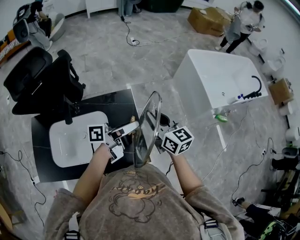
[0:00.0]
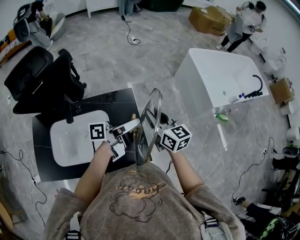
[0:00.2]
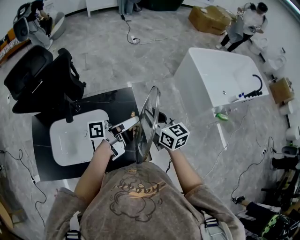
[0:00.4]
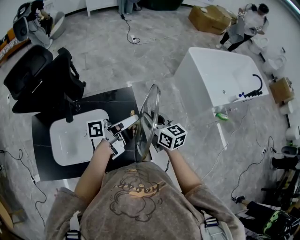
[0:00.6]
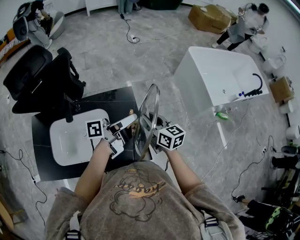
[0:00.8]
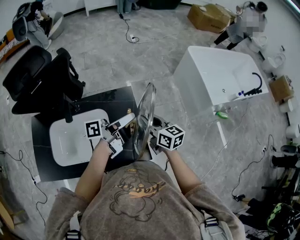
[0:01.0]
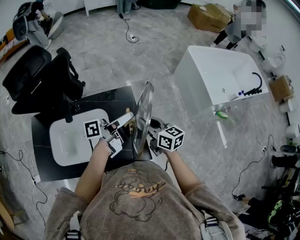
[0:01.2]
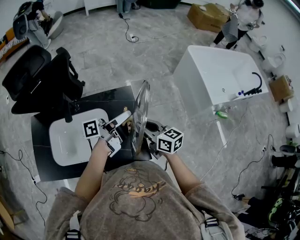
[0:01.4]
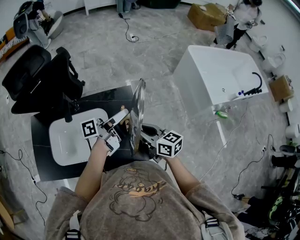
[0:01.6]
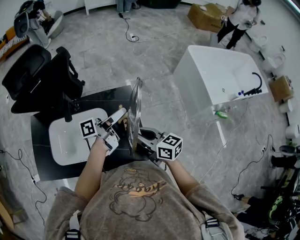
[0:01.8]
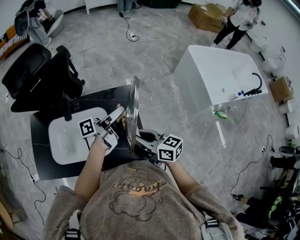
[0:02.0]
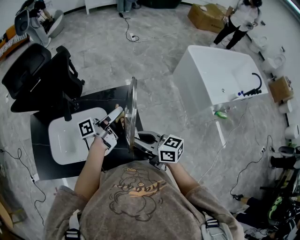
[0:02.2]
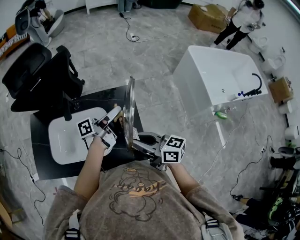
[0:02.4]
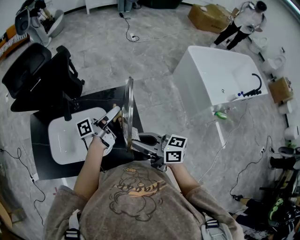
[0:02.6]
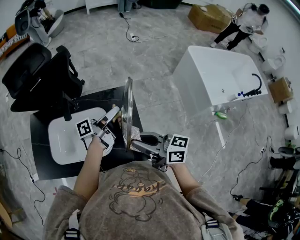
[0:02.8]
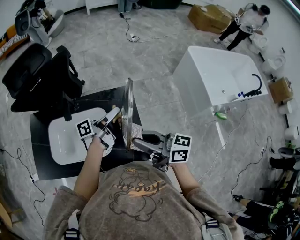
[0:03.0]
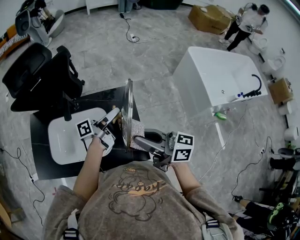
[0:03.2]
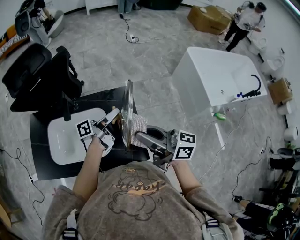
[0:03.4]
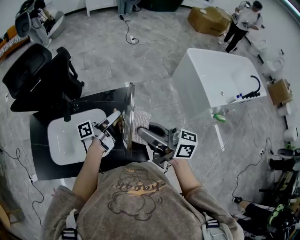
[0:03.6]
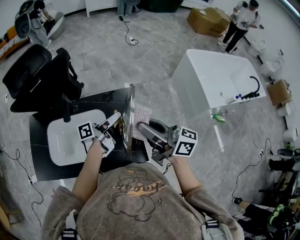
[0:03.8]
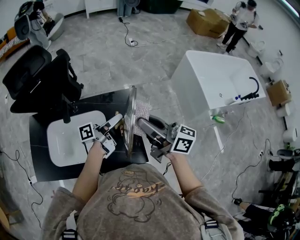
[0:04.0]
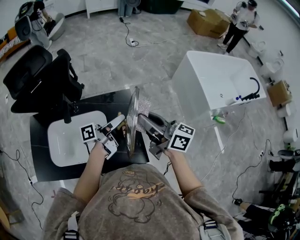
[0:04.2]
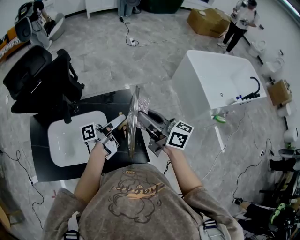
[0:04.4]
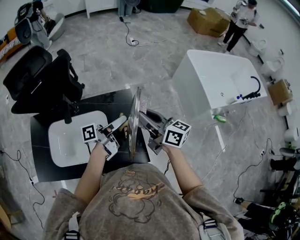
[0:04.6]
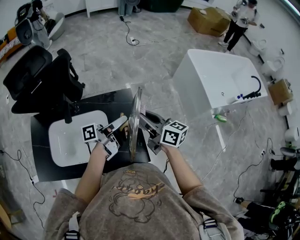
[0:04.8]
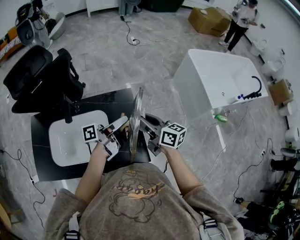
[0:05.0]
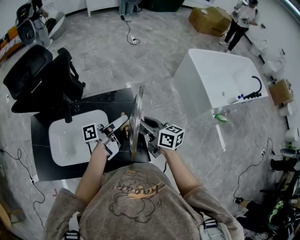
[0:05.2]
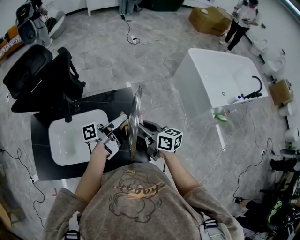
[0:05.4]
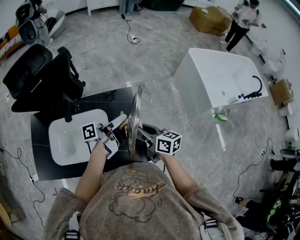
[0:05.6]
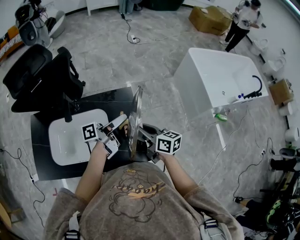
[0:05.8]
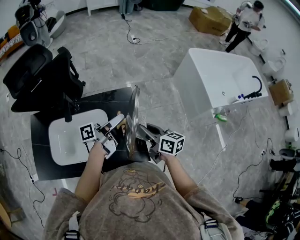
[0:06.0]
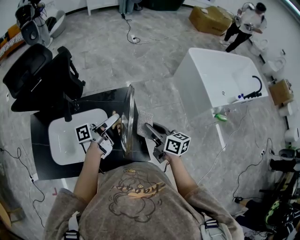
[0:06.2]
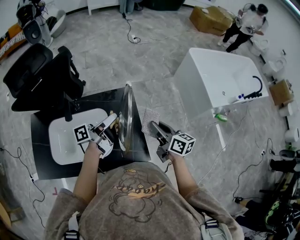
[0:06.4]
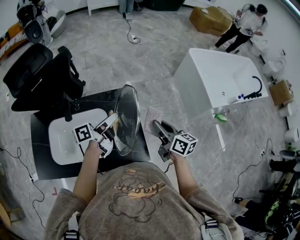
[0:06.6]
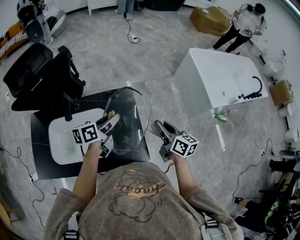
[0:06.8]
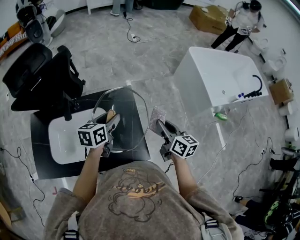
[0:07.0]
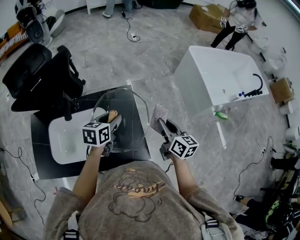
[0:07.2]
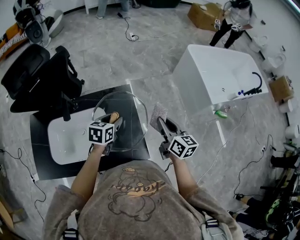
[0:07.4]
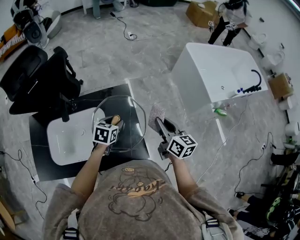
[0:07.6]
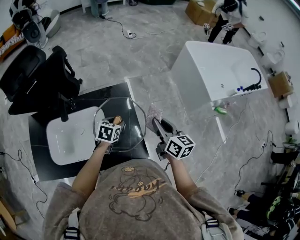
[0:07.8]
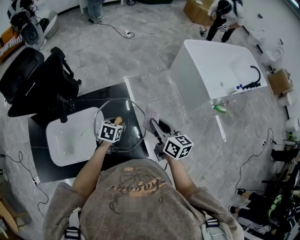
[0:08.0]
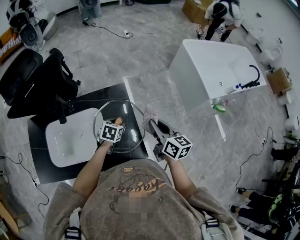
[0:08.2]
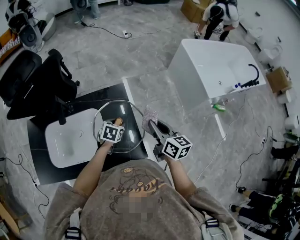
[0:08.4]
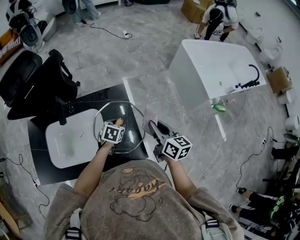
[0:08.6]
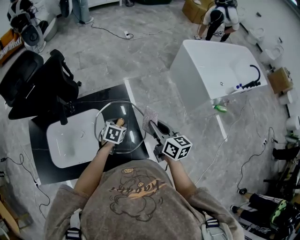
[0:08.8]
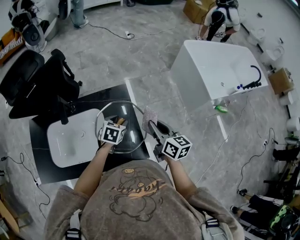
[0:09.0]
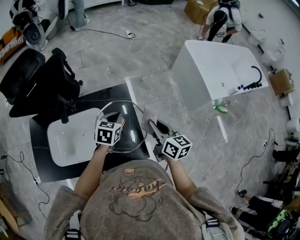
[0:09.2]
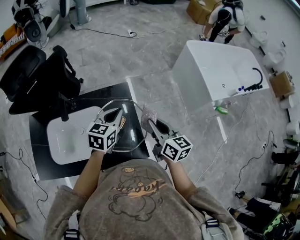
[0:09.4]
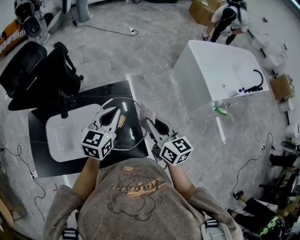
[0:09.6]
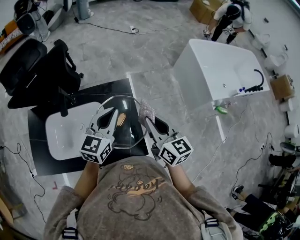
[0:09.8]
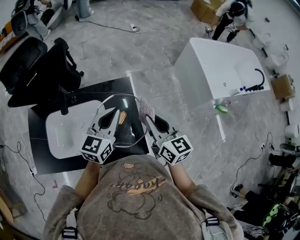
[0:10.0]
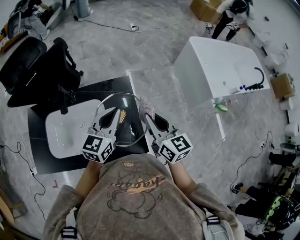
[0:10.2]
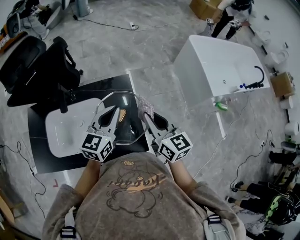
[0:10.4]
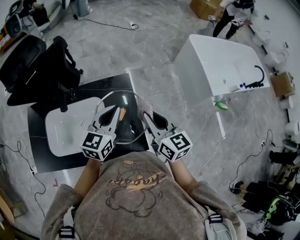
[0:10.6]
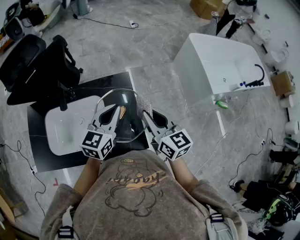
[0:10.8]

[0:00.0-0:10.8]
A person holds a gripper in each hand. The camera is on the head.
0:00.0 to 0:01.6: The left gripper moves roughly 5 cm, while the right gripper shifts roughly 10 cm downward and backward, and swivels about 20 degrees.
0:01.6 to 0:03.0: The right gripper shifts approximately 10 cm upward and backward, and changes its angle by roughly 20 degrees.
0:03.0 to 0:04.6: The right gripper travels forward by roughly 10 cm.
0:04.6 to 0:06.2: The right gripper shifts some 10 cm downward.
0:06.2 to 0:07.8: The right gripper travels to the right by some 5 cm. Meanwhile the left gripper heads downward, covering approximately 15 cm, and points its fingers some 60 degrees further downward.
0:07.8 to 0:09.2: The left gripper heads upward, covering about 5 cm, and closes.
0:09.2 to 0:10.8: The right gripper is displaced upward by some 5 cm, while the left gripper goes roughly 10 cm upward, and changes its angle by roughly 30 degrees.

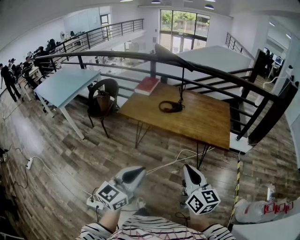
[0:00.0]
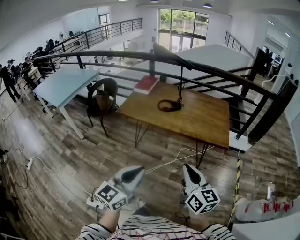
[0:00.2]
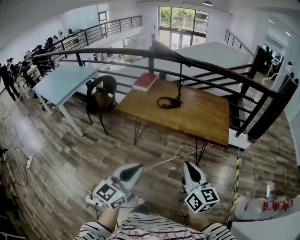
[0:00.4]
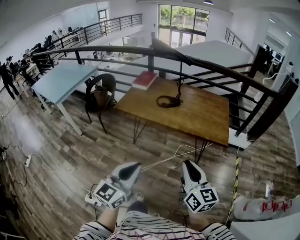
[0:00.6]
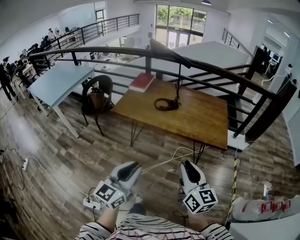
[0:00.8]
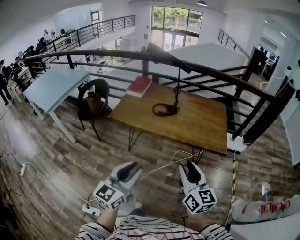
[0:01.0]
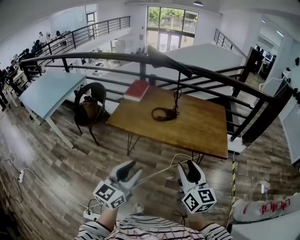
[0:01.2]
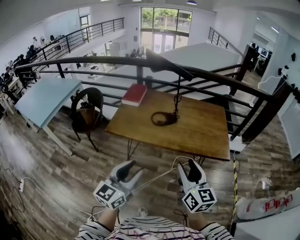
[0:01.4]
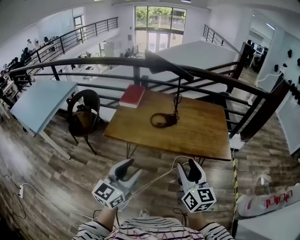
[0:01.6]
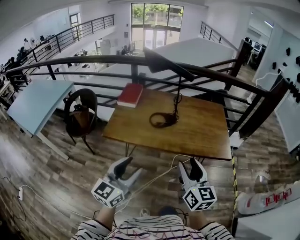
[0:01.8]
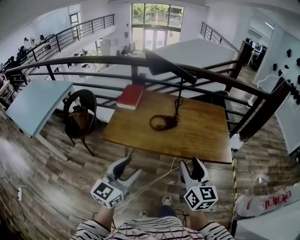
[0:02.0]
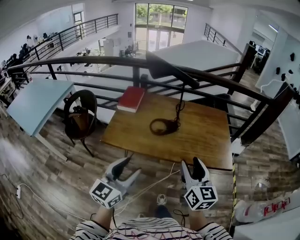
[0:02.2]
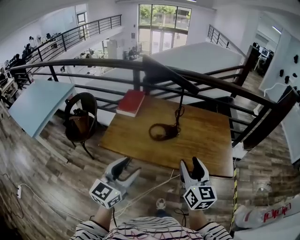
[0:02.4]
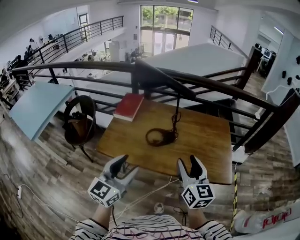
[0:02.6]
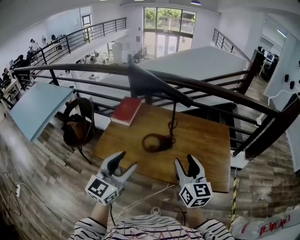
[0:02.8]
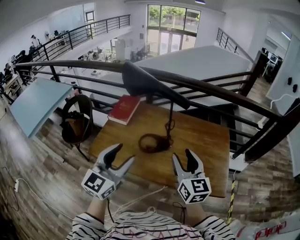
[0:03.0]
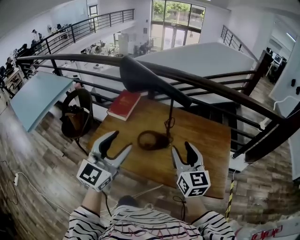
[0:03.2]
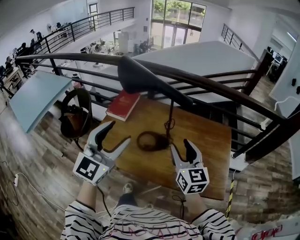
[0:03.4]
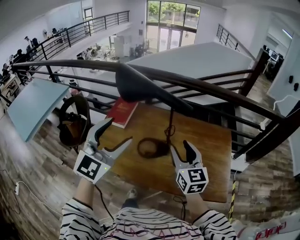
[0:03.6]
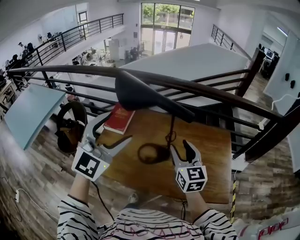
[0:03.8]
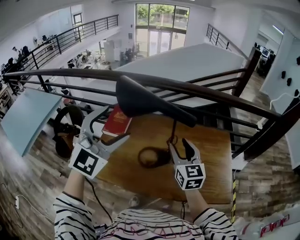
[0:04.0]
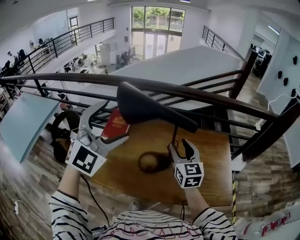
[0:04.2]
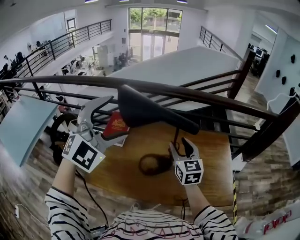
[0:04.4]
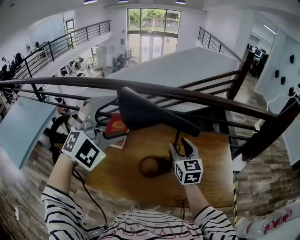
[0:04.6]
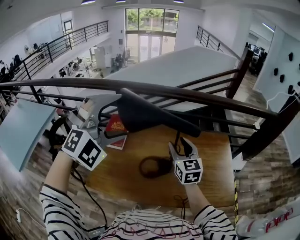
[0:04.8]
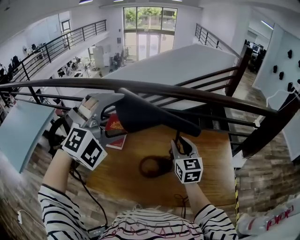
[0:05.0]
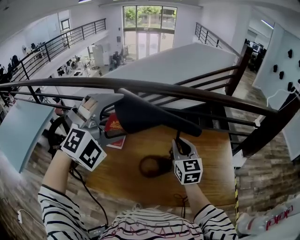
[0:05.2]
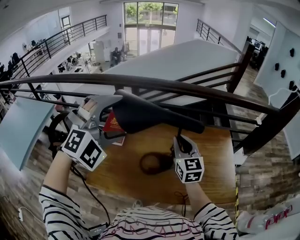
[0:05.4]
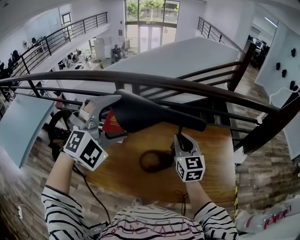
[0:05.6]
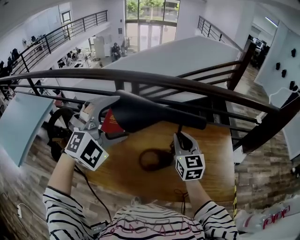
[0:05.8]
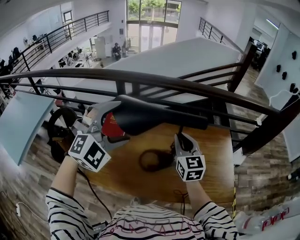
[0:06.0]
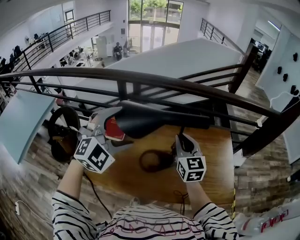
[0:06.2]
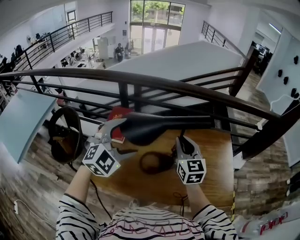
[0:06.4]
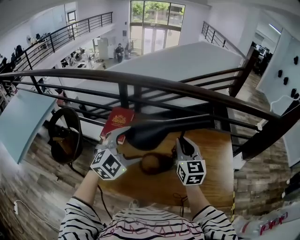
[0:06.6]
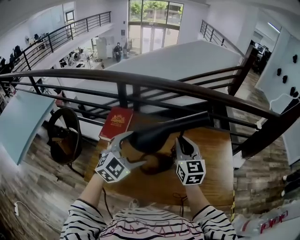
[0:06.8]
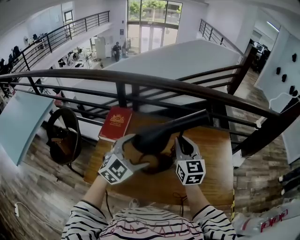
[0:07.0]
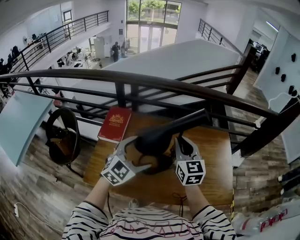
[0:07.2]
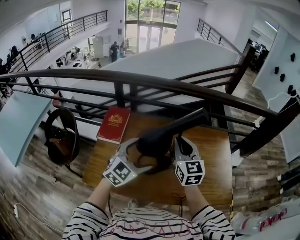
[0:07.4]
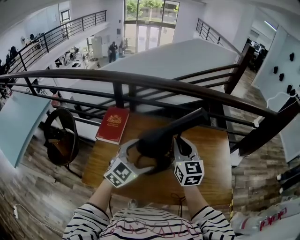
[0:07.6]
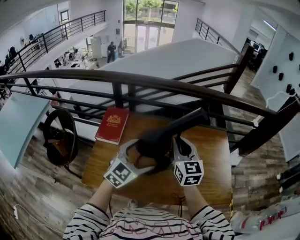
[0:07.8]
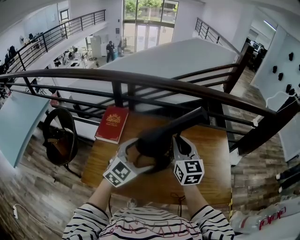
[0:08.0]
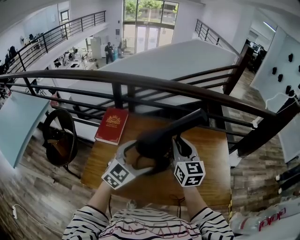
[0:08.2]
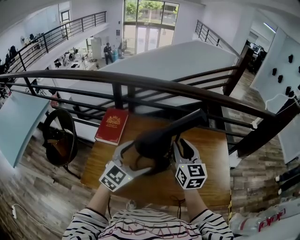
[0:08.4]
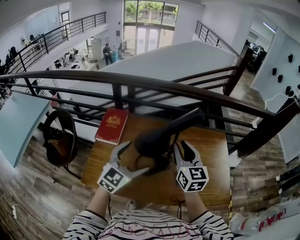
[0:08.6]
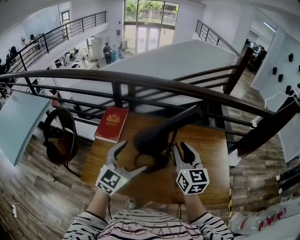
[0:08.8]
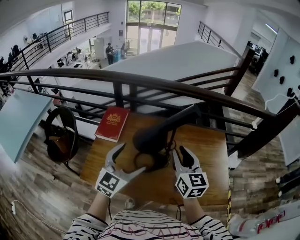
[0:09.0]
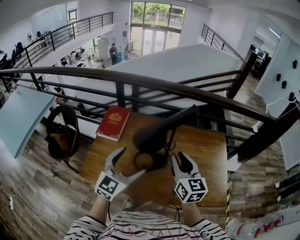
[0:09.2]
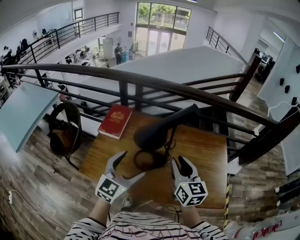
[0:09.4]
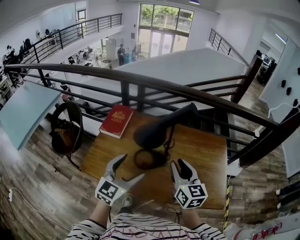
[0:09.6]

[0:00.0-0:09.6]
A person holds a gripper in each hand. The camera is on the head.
0:00.0 to 0:01.6: The two grippers go some 30 cm forward and to the left. The right gripper opens its fingers. The left gripper opens up.
0:01.6 to 0:03.2: The two grippers go approximately 35 cm forward. The left gripper changes its angle by approximately 20 degrees.
0:03.2 to 0:04.8: The right gripper shifts approximately 20 cm forward and to the left. The left gripper is displaced forward, upward and to the left by roughly 25 cm, rolls clockwise, seen from behind, by roughly 60 degrees, and opens.
0:04.8 to 0:06.4: The left gripper goes roughly 15 cm downward, and turns by some 30 degrees, while the right gripper closes up.
0:06.4 to 0:08.0: The left gripper goes some 10 cm downward and to the right, and turns by roughly 30 degrees.
0:08.0 to 0:09.6: The left gripper is displaced backward by some 10 cm, and swivels approximately 20 degrees, while the right gripper shifts some 15 cm backward and to the right.

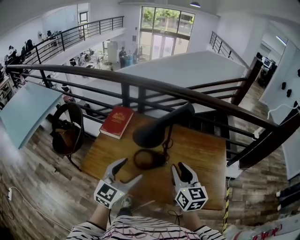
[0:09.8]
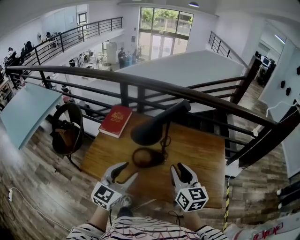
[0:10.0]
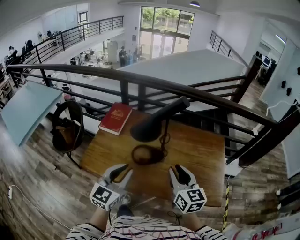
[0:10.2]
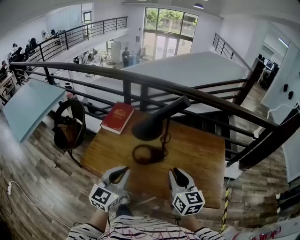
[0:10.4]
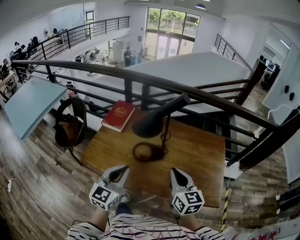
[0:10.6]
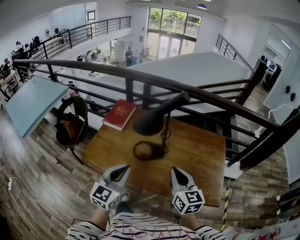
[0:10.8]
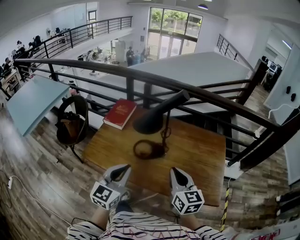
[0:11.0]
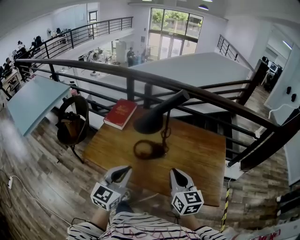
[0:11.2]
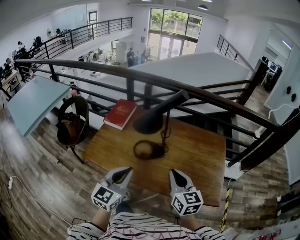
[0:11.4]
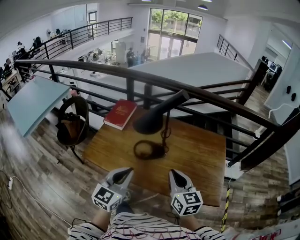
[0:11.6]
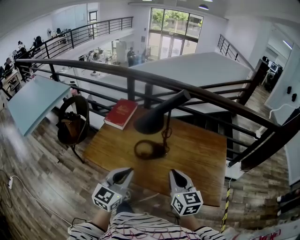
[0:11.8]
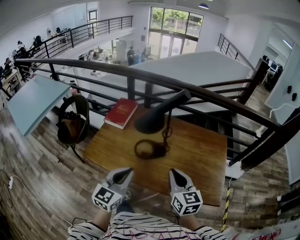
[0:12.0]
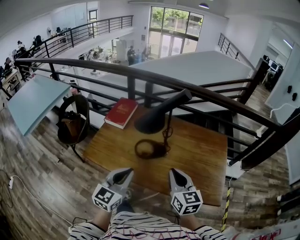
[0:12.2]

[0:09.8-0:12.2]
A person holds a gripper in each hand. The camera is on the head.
0:09.8 to 0:11.0: The grippers both shift backward by roughly 10 cm. The right gripper closes, while the left gripper closes its fingers.
0:11.0 to 0:12.2: The grippers stay close to where they were, moving slightly.

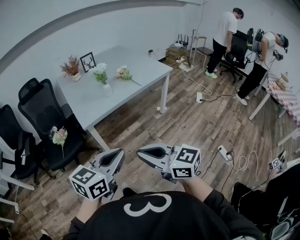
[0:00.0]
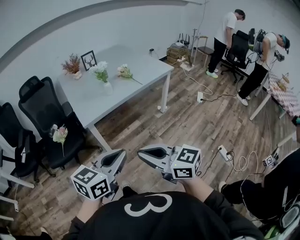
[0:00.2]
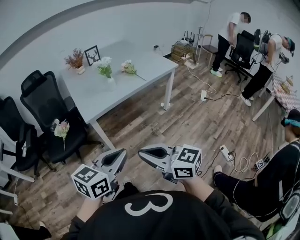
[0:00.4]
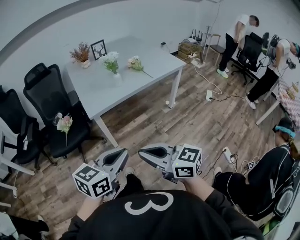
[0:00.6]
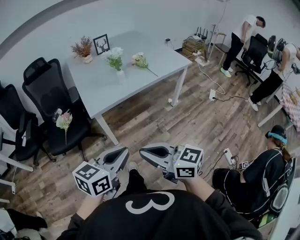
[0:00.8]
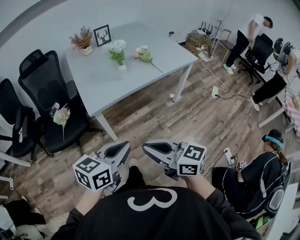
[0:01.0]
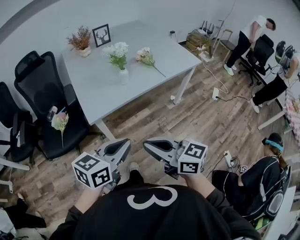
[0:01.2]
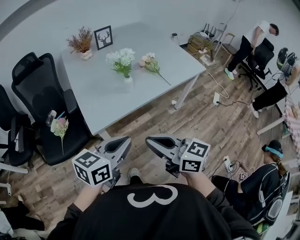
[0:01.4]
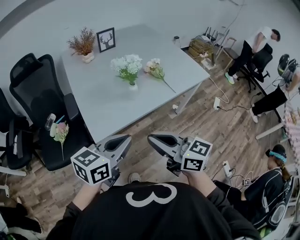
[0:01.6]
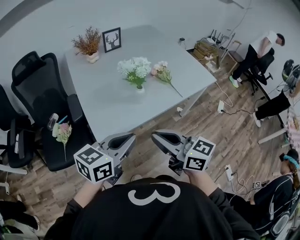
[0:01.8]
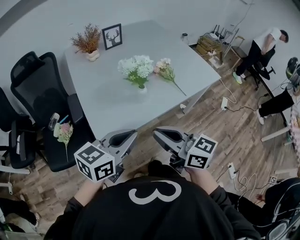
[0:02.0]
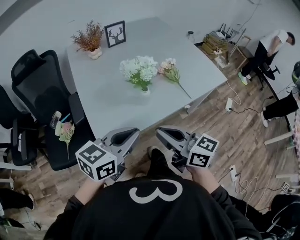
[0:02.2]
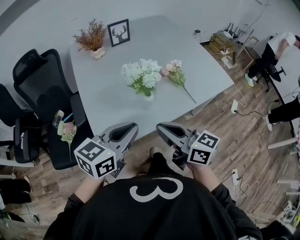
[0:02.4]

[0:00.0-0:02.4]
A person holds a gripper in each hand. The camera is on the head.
0:00.0 to 0:01.2: The grippers both shift forward by about 20 cm.
0:01.2 to 0:02.4: Both grippers move forward, some 25 cm.
